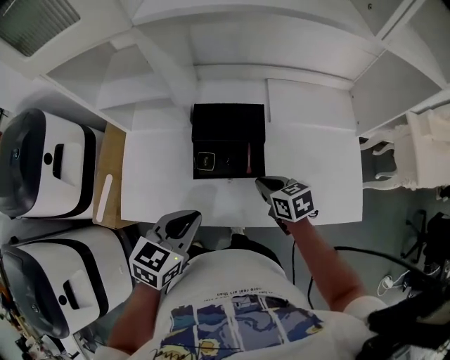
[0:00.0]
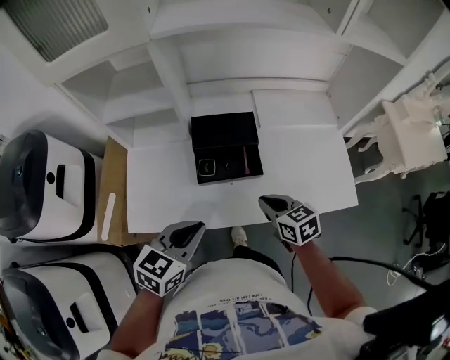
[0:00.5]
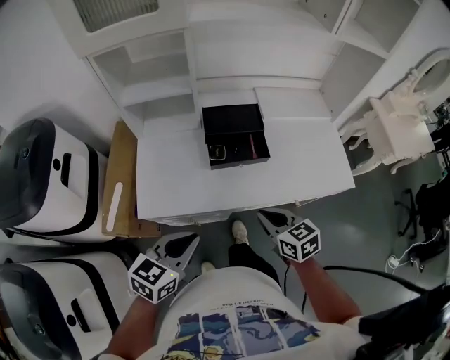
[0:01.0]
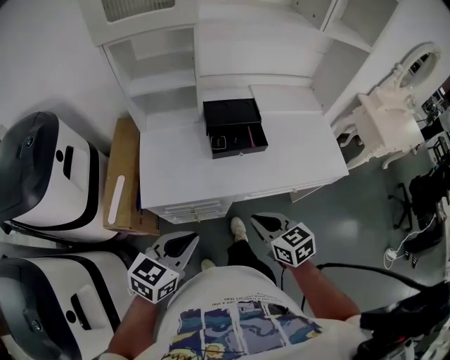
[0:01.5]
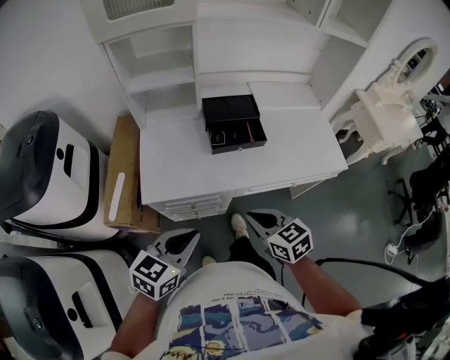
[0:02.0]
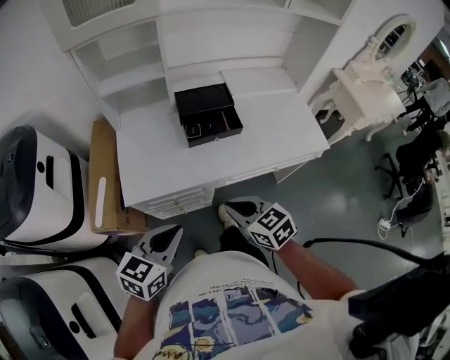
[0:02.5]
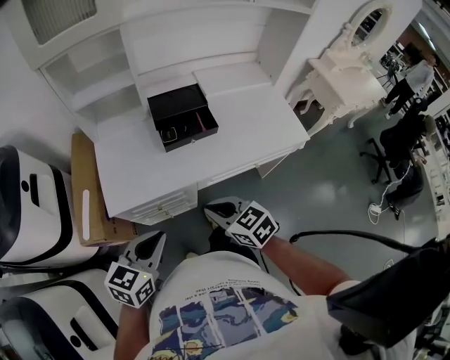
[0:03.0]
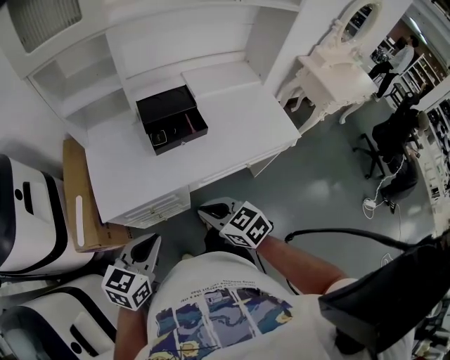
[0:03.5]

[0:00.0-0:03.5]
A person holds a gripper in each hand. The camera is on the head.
0:00.0 to 0:02.0: The two grippers go some 30 cm backward and to the left.
0:02.0 to 0:03.5: The grippers stay close to where they were, moving slightly.

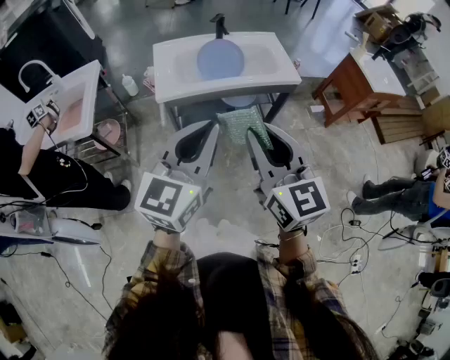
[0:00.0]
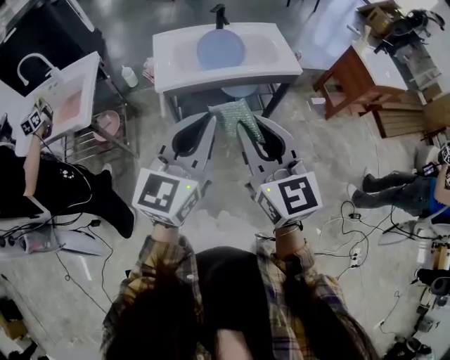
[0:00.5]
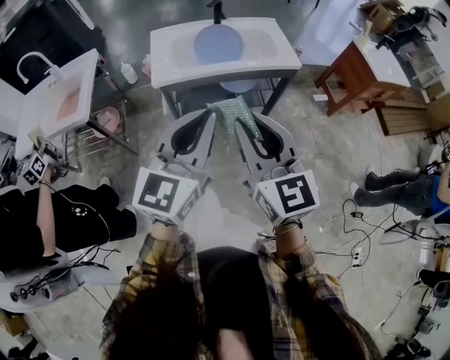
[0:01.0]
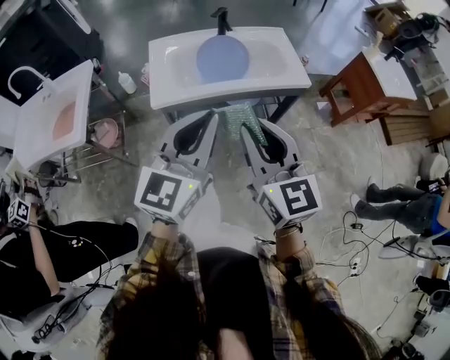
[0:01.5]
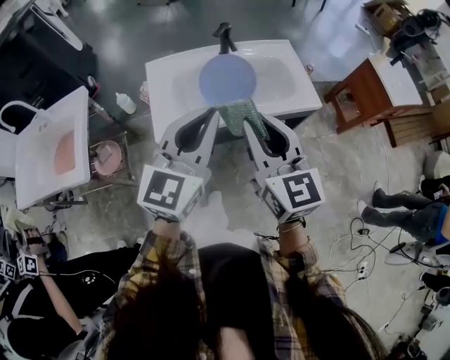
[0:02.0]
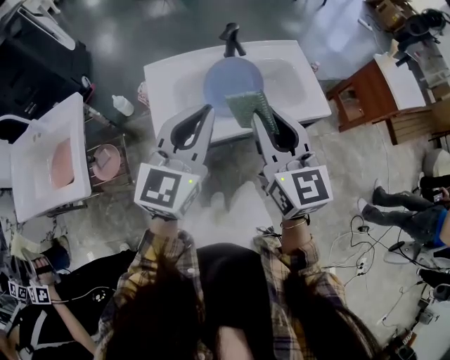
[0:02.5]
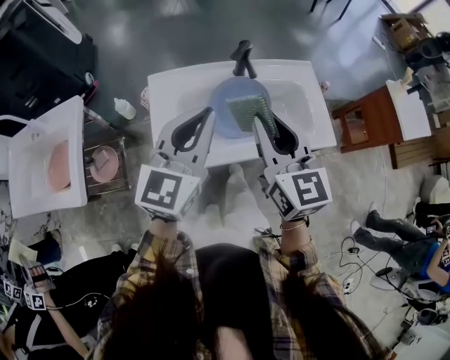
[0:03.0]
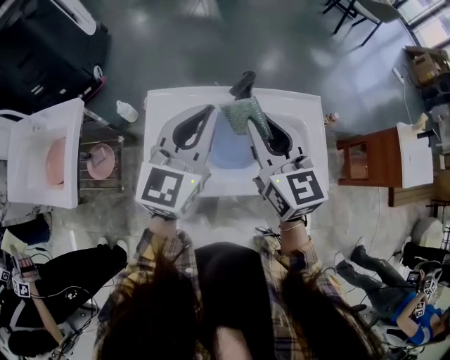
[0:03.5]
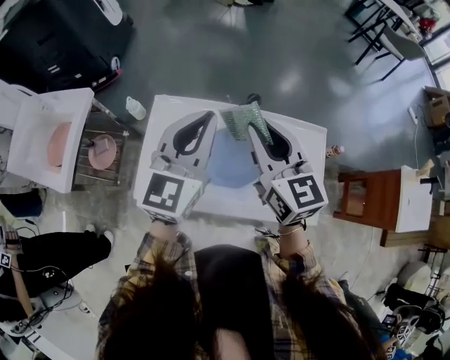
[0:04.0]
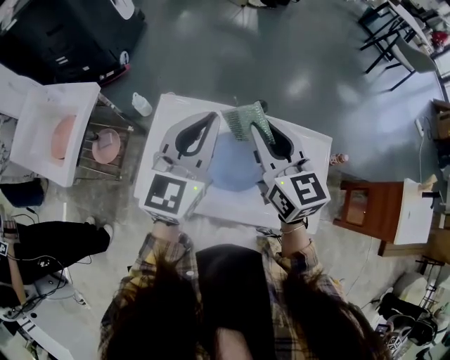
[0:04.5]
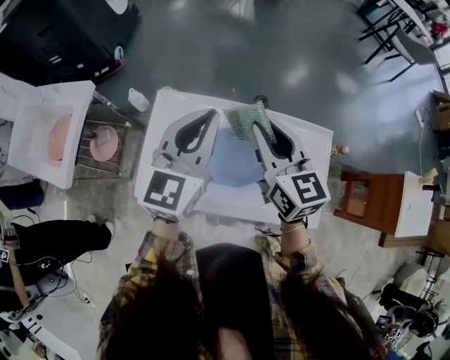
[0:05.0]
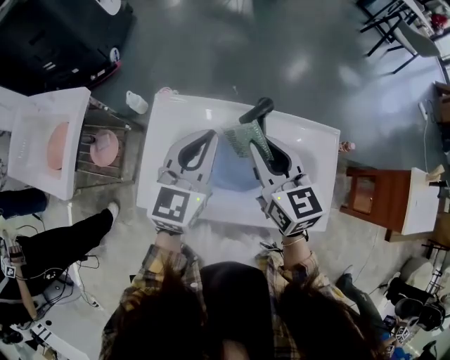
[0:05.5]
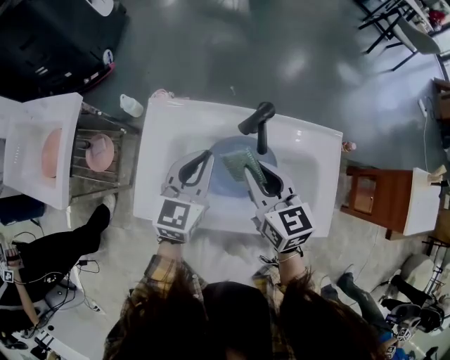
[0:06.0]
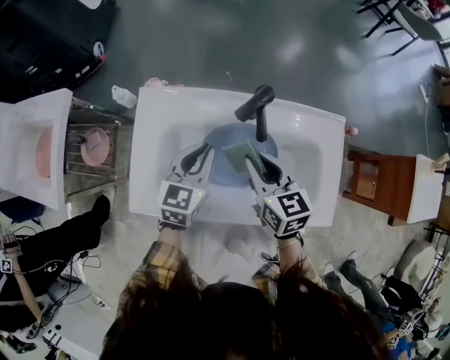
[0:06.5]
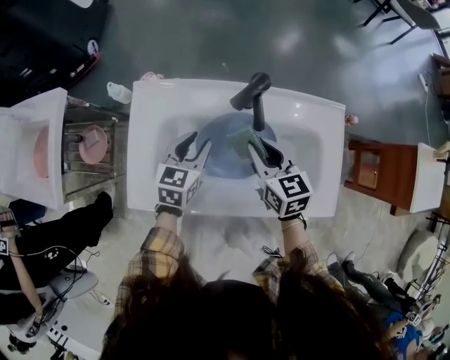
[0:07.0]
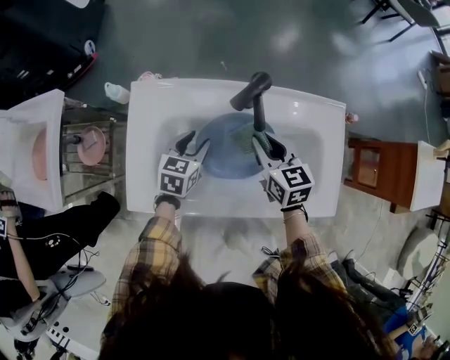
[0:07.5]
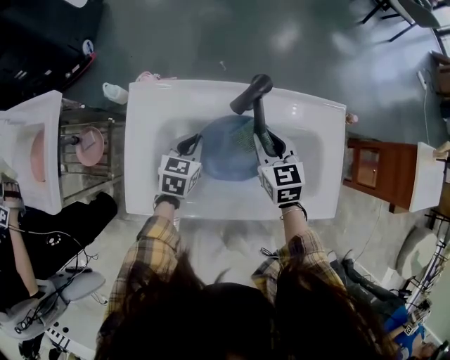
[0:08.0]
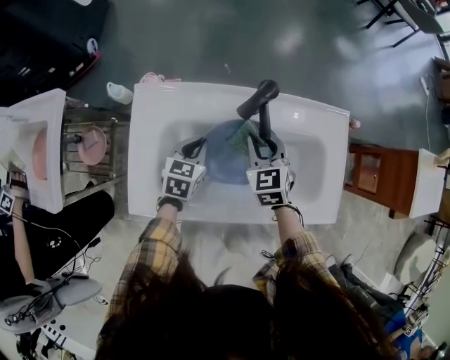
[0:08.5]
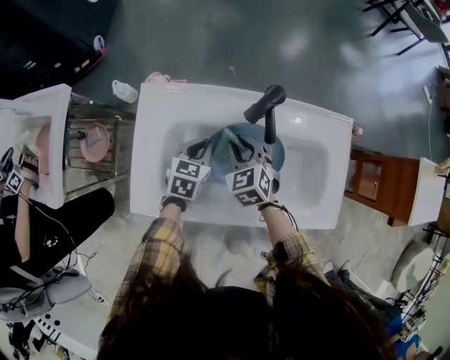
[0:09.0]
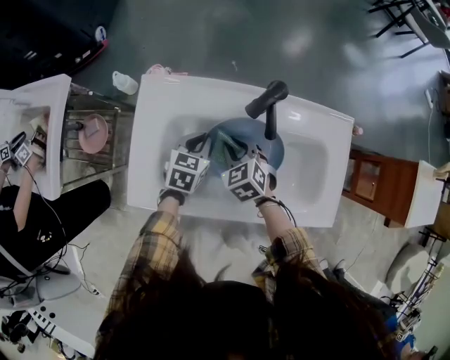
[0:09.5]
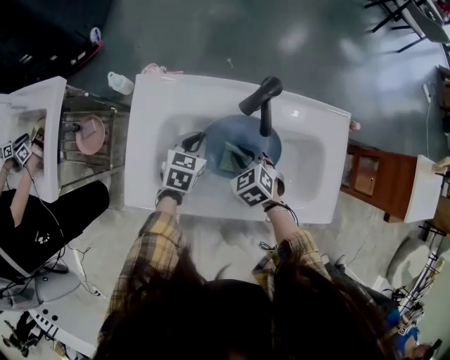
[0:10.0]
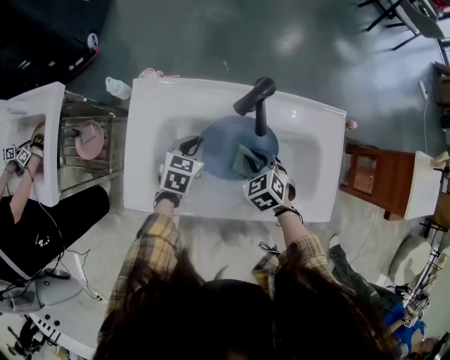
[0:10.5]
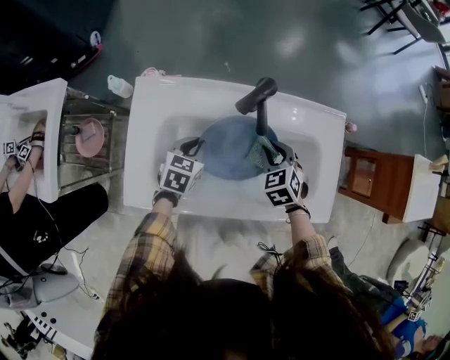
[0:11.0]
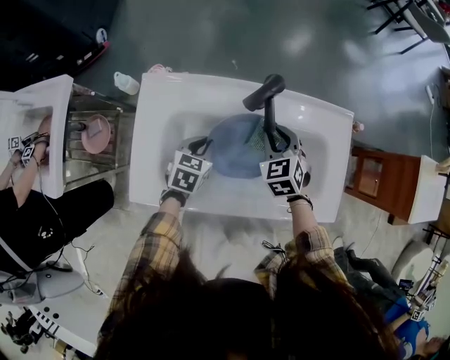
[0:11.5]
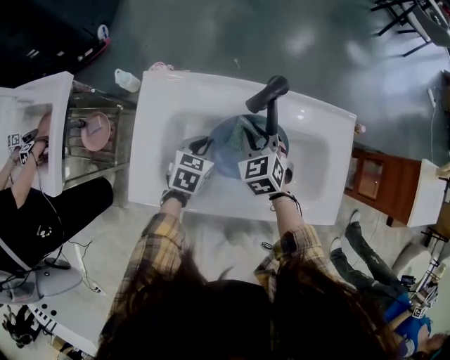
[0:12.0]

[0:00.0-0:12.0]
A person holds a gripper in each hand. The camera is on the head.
0:00.0 to 0:02.0: The grippers both shift forward by about 25 cm.
0:02.0 to 0:04.0: The right gripper changes place by about 35 cm, and turns by some 20 degrees; the left gripper ends up roughly 30 cm from where it was, and rotates roughly 20 degrees.
0:04.0 to 0:06.0: Both grippers travel together downward, about 15 cm.
0:06.0 to 0:08.0: The right gripper travels downward and to the right by about 15 cm; the left gripper shifts about 20 cm downward, rotates approximately 20 degrees, and opens, then closes again.
0:08.0 to 0:10.0: The right gripper is displaced downward, to the left and backward by about 10 cm, and changes its angle by approximately 30 degrees.
0:10.0 to 0:12.0: The right gripper is displaced forward and upward by approximately 10 cm, and moves roughly 10 cm to the right and comes back.

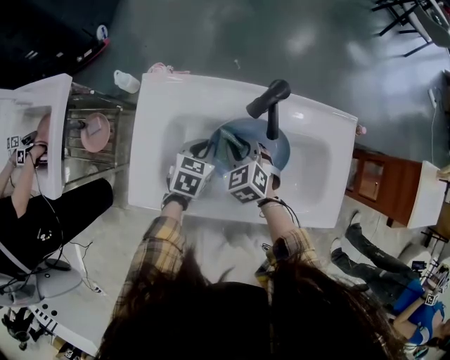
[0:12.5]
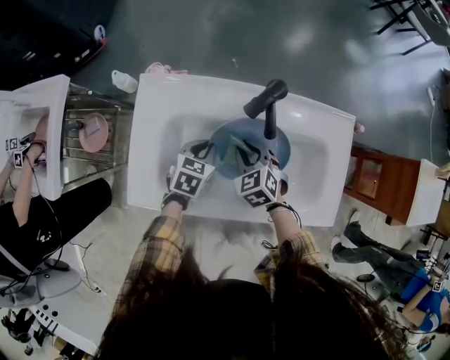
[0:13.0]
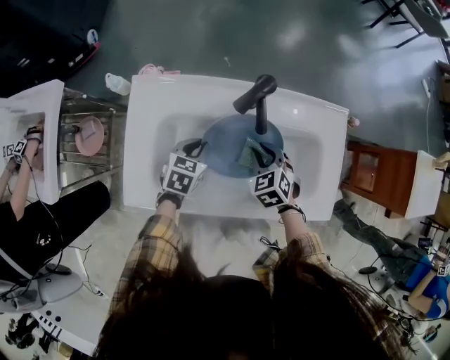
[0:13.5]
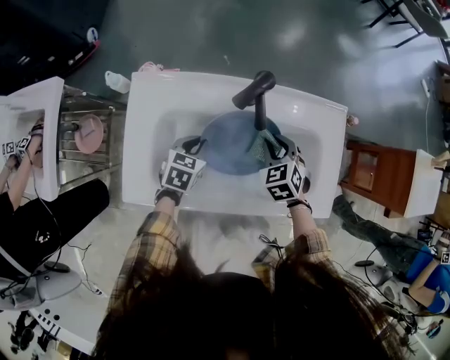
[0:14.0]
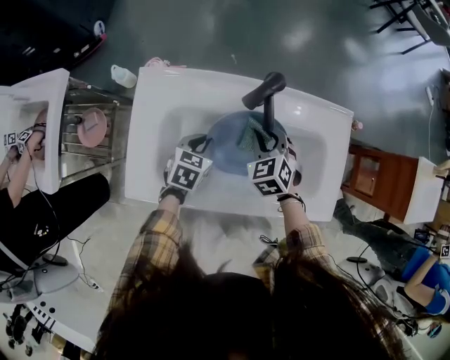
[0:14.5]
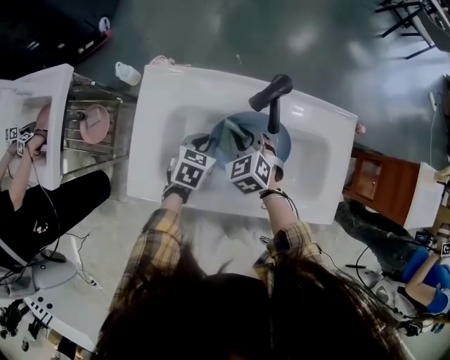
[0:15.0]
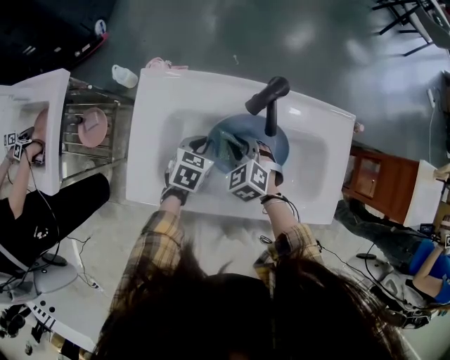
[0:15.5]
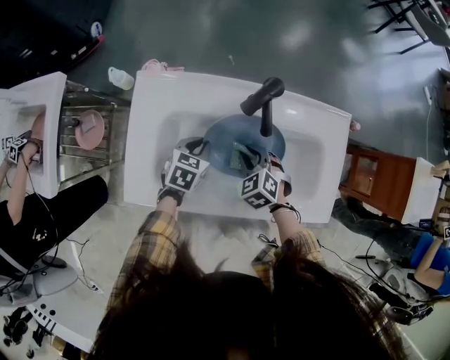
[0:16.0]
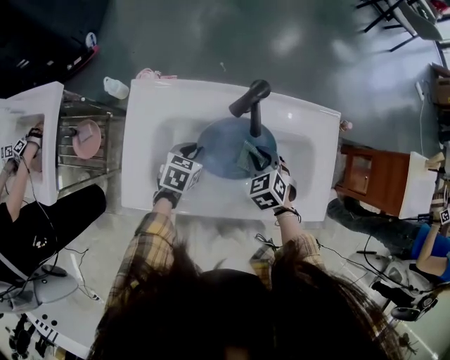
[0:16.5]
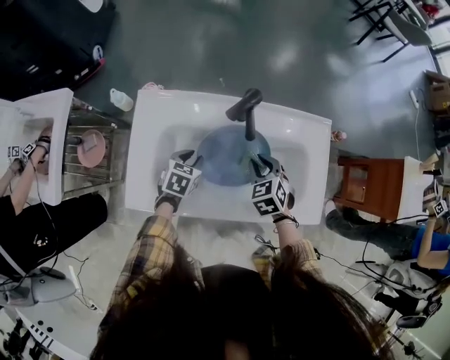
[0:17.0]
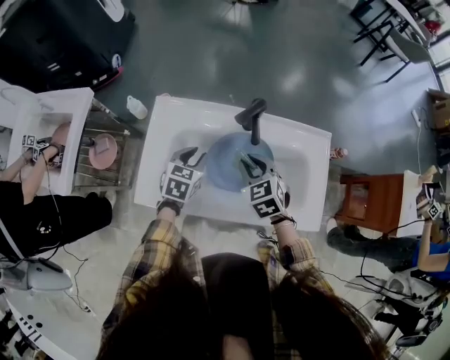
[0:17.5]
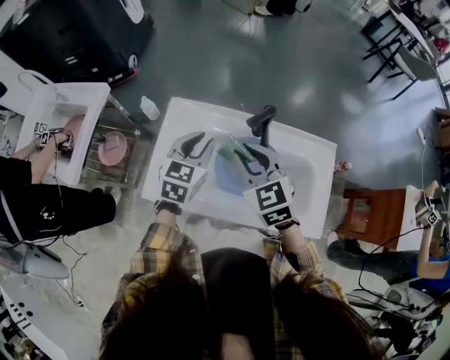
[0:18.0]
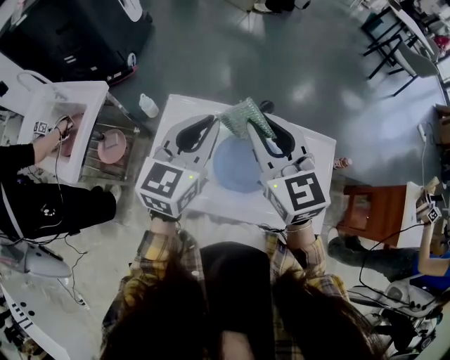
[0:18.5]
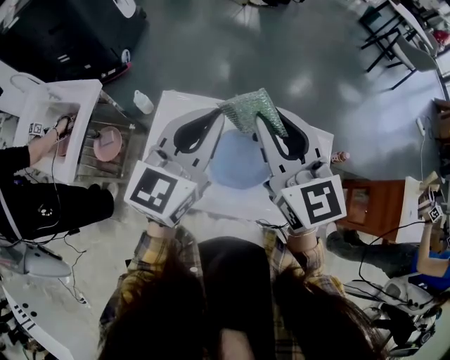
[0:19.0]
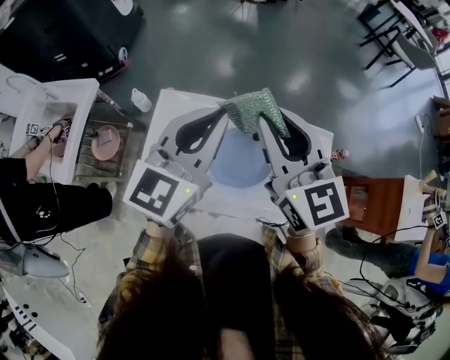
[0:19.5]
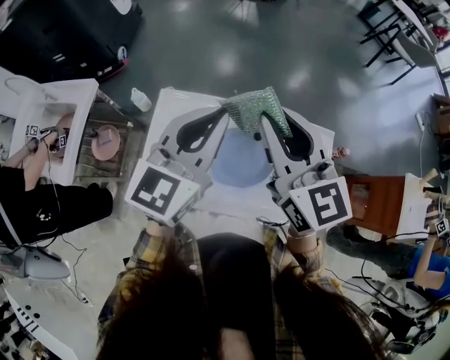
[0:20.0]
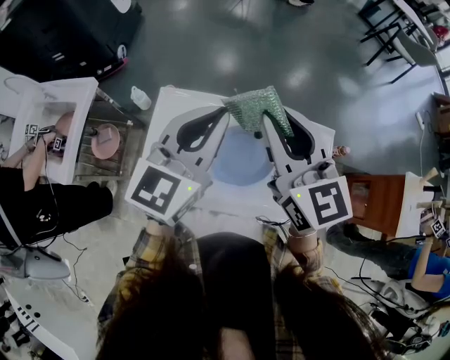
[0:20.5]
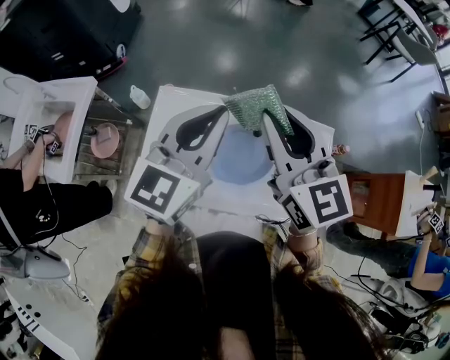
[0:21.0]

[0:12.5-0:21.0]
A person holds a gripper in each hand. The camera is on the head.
0:12.5 to 0:14.5: The right gripper moves to the right, roughly 10 cm.
0:14.5 to 0:16.5: The right gripper moves about 10 cm to the left and comes back.
0:16.5 to 0:19.0: Both grippers travel together upward, roughly 40 cm. The left gripper points its fingers about 50 degrees further upward, while the right gripper points its fingers approximately 50 degrees further upward.
0:19.0 to 0:21.0: There are only small adjustments of the grippers.

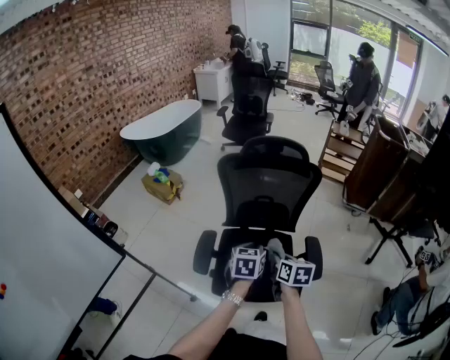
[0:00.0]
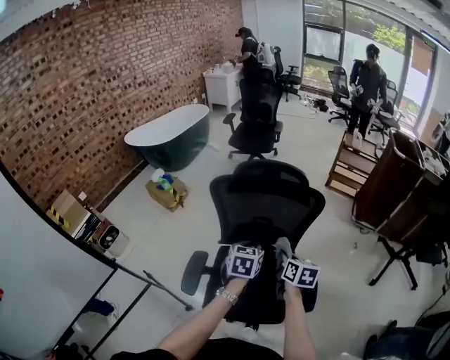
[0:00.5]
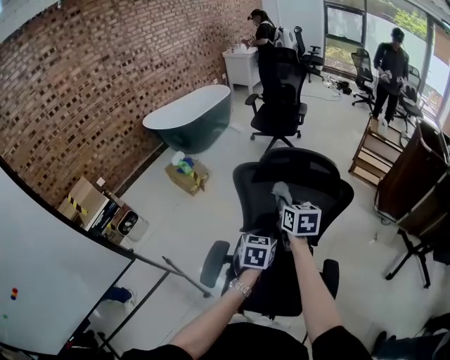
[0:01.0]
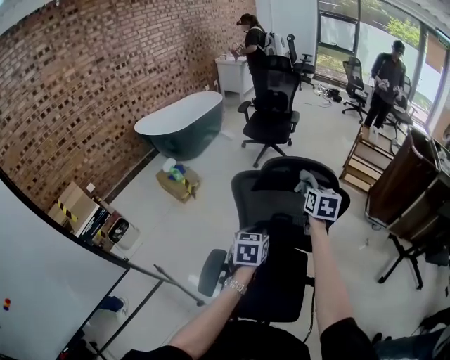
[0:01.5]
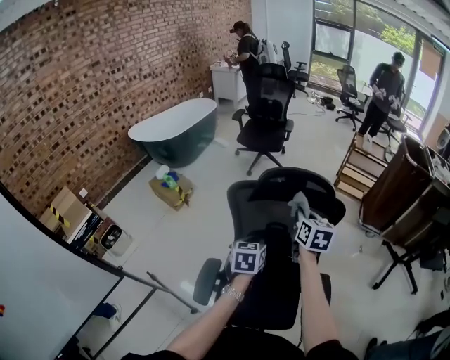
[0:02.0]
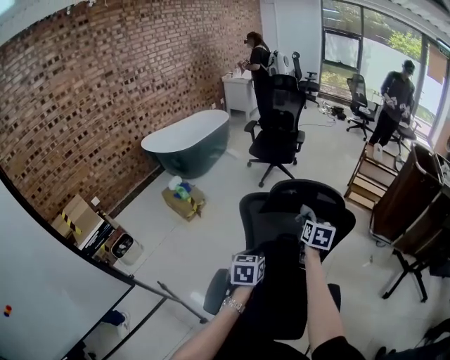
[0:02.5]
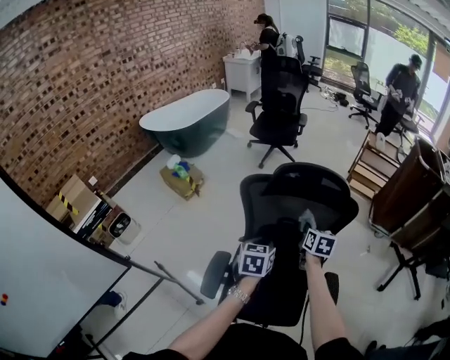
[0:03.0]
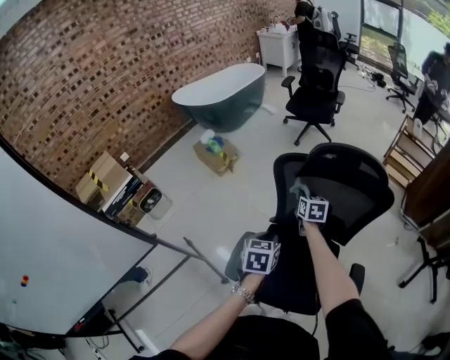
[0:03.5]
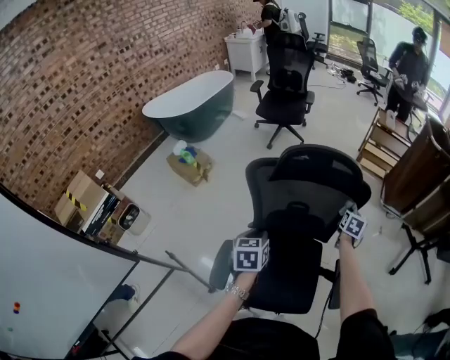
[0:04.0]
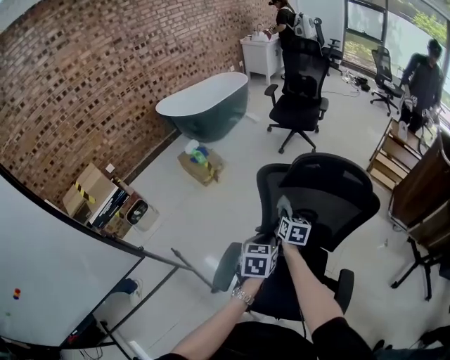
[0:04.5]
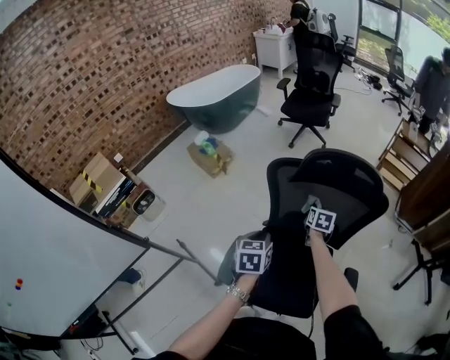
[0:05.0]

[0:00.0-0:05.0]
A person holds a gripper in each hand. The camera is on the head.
0:00.0 to 0:02.5: The right gripper swings forward and backward, about 35 cm each way, with 2 reversals, while the left gripper heads forward and to the left, covering roughly 15 cm.
0:02.5 to 0:05.0: The right gripper swings left and right, some 35 cm each way, with 3 reversals. Meanwhile the left gripper moves left and right over about 10 cm, changing direction 2 times.
